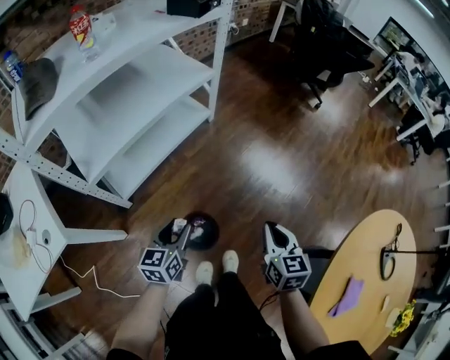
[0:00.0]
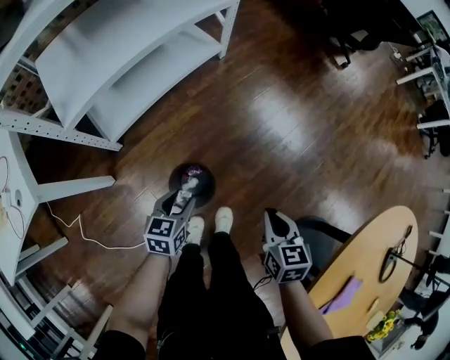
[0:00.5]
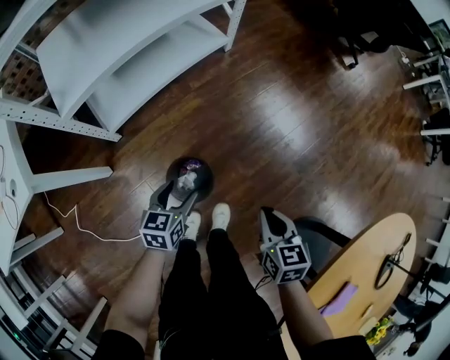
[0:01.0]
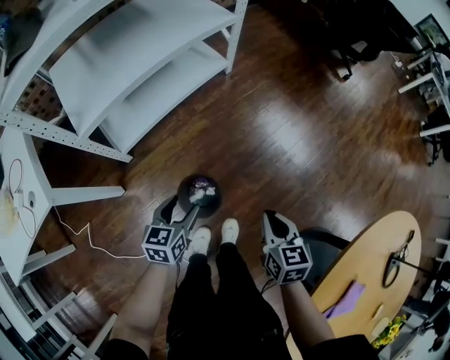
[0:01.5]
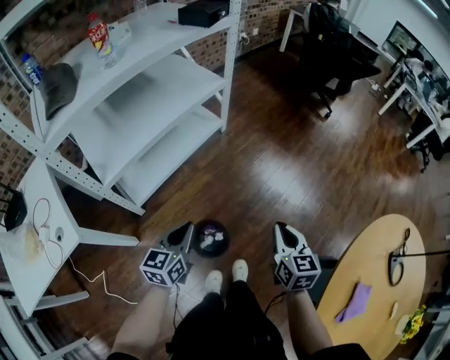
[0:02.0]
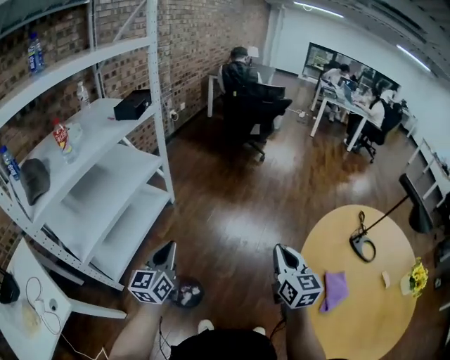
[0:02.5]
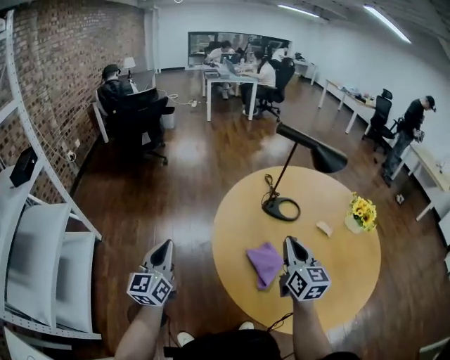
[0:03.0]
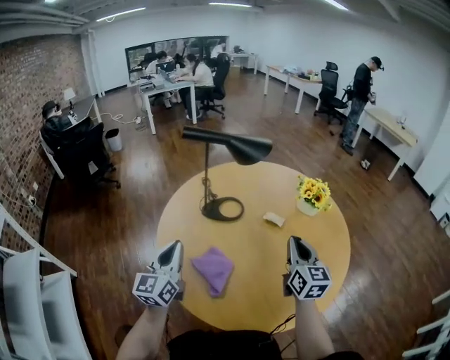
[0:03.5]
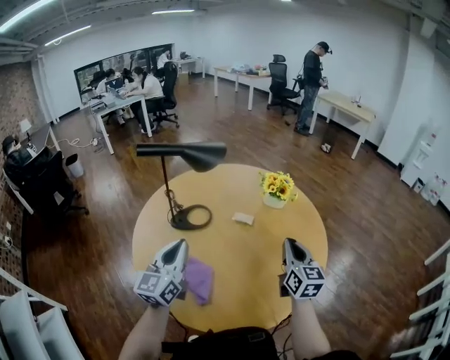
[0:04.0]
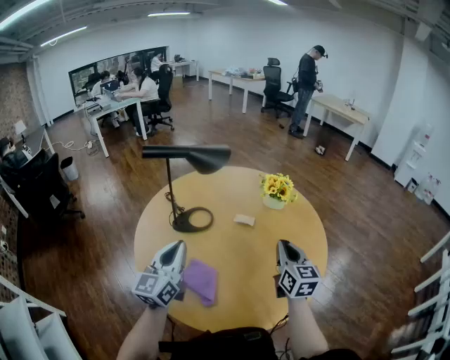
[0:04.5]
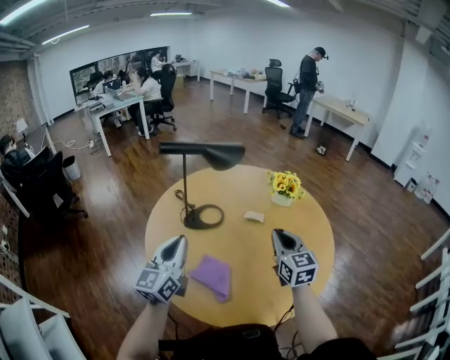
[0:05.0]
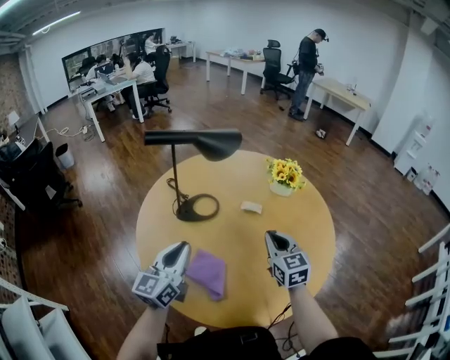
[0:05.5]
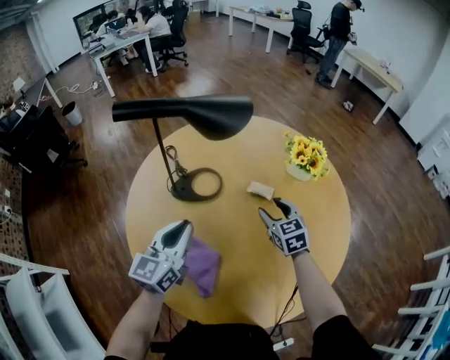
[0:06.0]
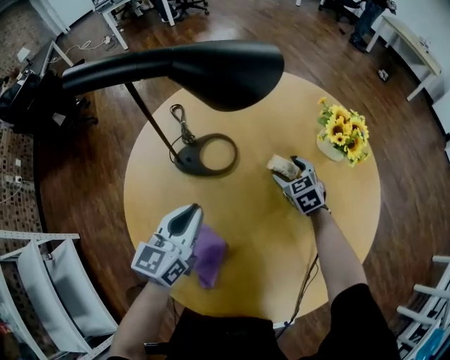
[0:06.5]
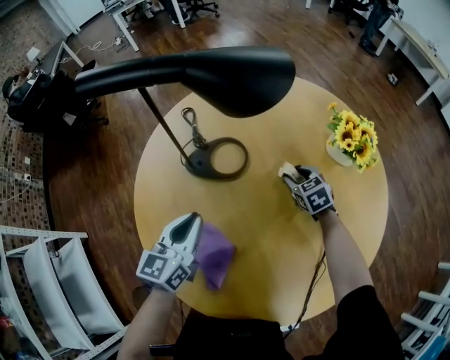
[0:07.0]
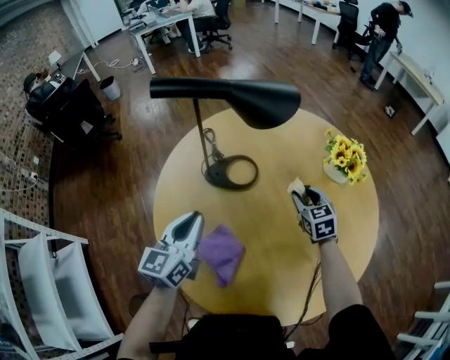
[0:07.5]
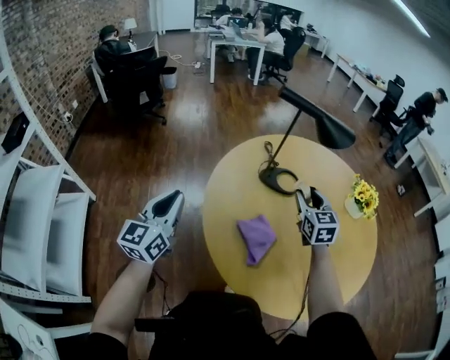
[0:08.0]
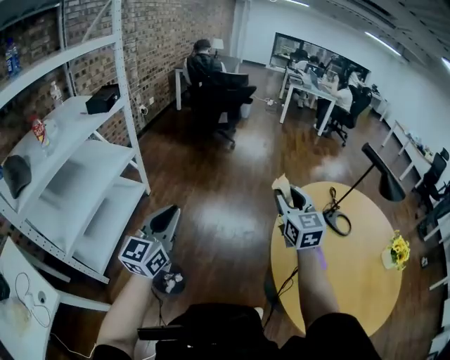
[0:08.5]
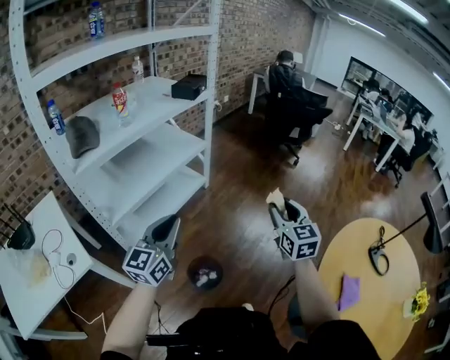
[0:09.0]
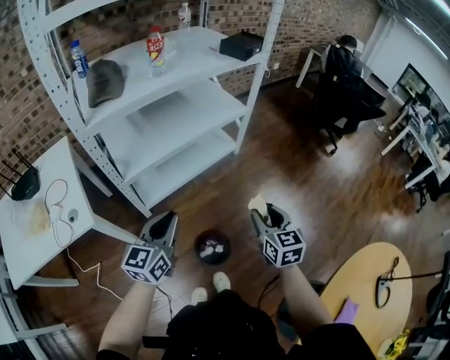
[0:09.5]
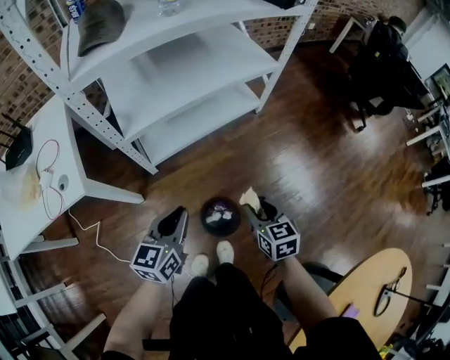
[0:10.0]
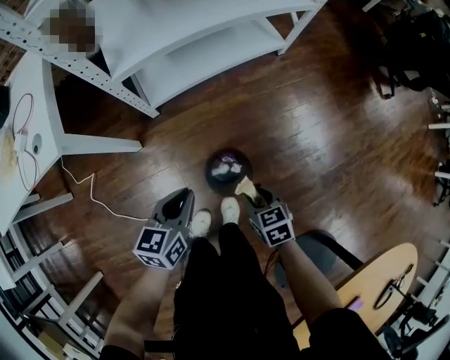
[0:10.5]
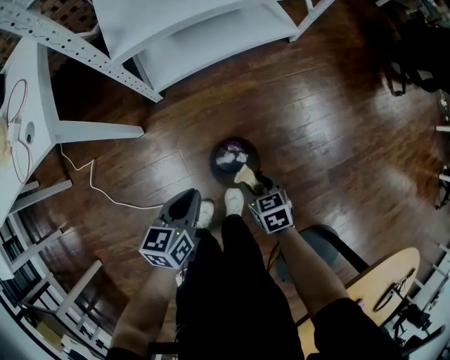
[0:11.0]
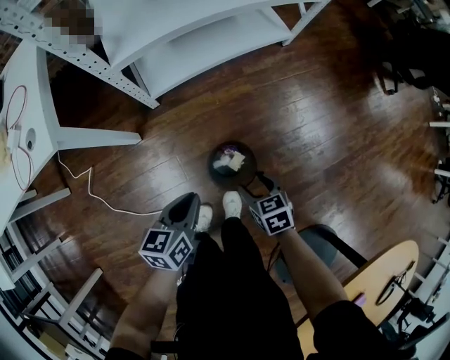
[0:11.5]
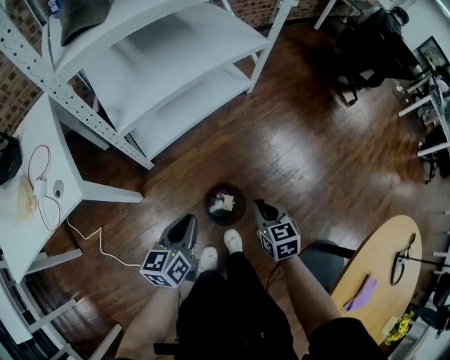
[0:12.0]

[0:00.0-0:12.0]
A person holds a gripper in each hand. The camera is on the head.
0:00.0 to 0:02.0: The left gripper reaches approximately 15 cm downward, then returns, and closes up. The right gripper reaches roughly 15 cm downward, then returns.
0:02.0 to 0:04.0: The two grippers travel together, roughly 80 cm. The right gripper turns by approximately 90 degrees, while the left gripper swivels roughly 80 degrees.
0:04.0 to 0:06.0: The right gripper moves downward, forward and to the left, some 25 cm, swivels approximately 40 degrees, and opens up. The left gripper shifts about 10 cm downward and forward.
0:06.0 to 0:08.0: The right gripper is displaced to the left and upward by approximately 20 cm, and swivels roughly 20 degrees. The left gripper heads to the left and backward, covering roughly 30 cm, and swivels roughly 30 degrees.
0:08.0 to 0:10.0: Both grippers are carried about 70 cm. The right gripper changes its angle by some 80 degrees; the left gripper turns by roughly 70 degrees.
0:10.0 to 0:12.0: The right gripper is displaced backward by roughly 5 cm, goes downward and returns, approximately 25 cm each way, and closes up. The left gripper moves downward, approximately 5 cm.

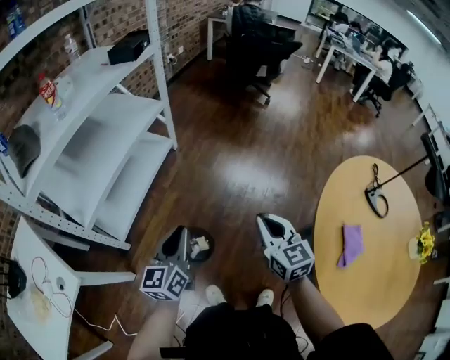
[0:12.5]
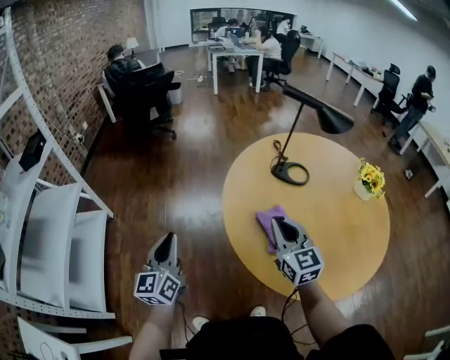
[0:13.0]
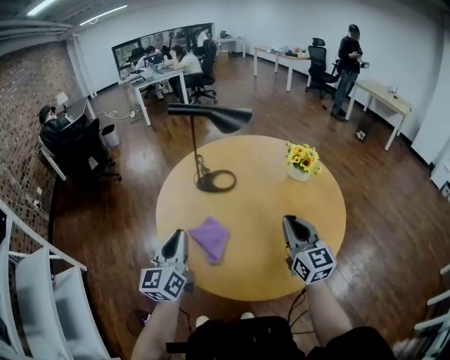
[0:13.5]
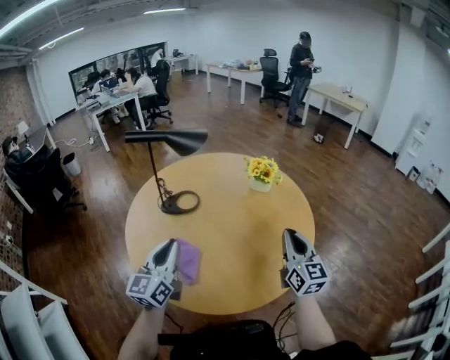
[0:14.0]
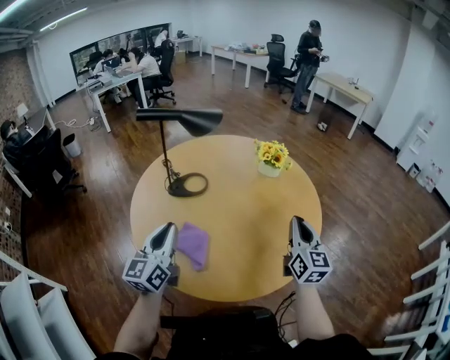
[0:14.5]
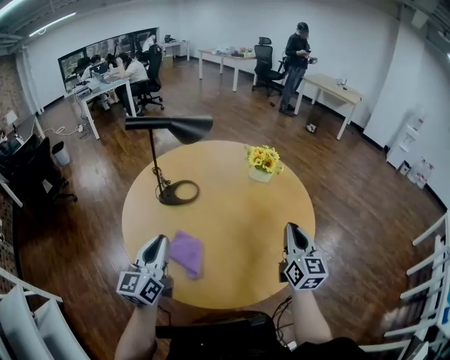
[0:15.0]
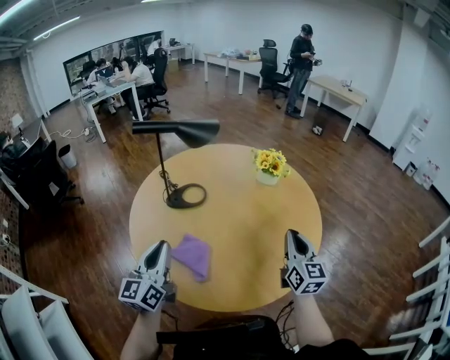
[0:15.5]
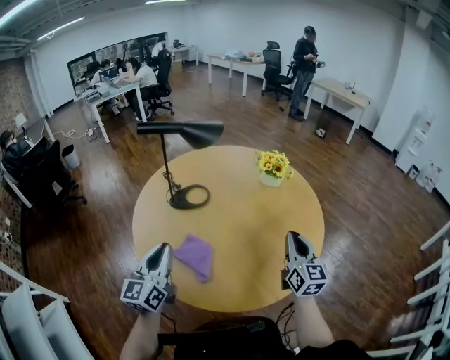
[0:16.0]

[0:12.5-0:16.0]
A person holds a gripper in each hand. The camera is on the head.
0:12.5 to 0:14.5: Both grippers are carried some 60 cm. The left gripper swivels roughly 70 degrees. The right gripper turns by roughly 90 degrees.
0:14.5 to 0:16.0: The grippers stay close to where they were, moving slightly.

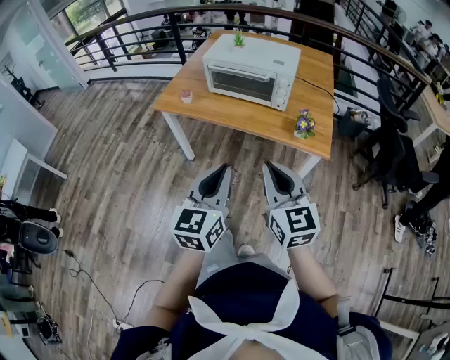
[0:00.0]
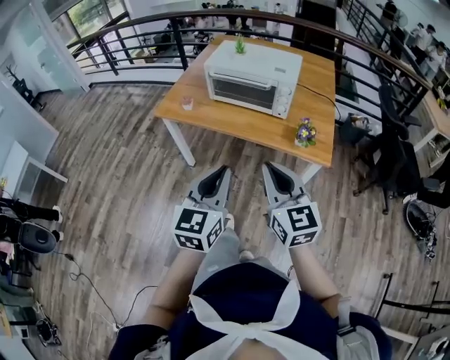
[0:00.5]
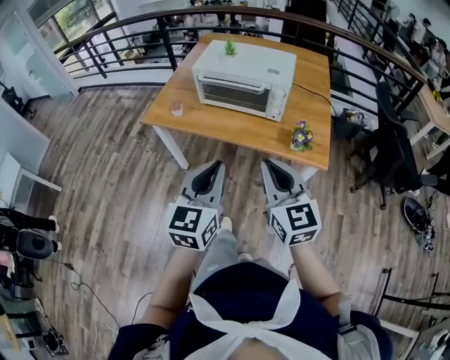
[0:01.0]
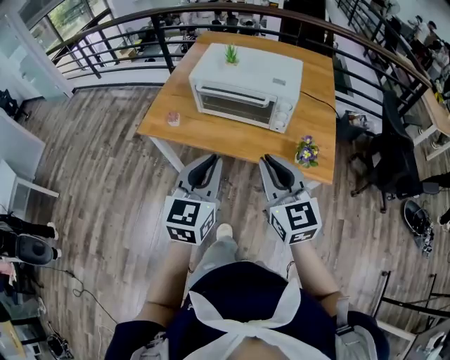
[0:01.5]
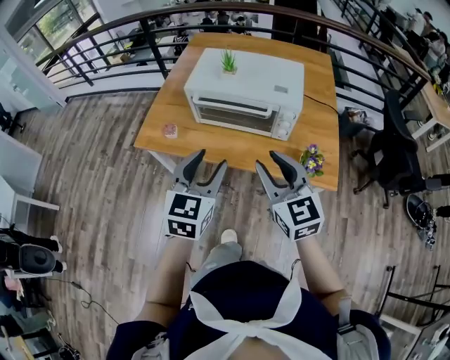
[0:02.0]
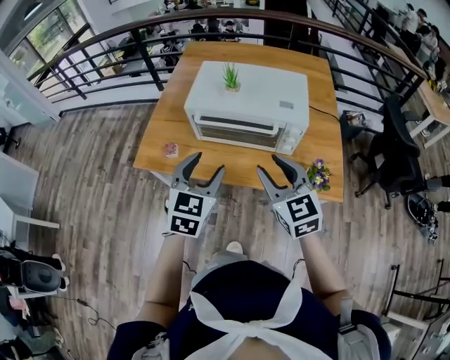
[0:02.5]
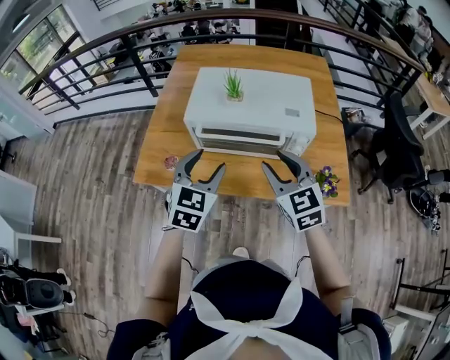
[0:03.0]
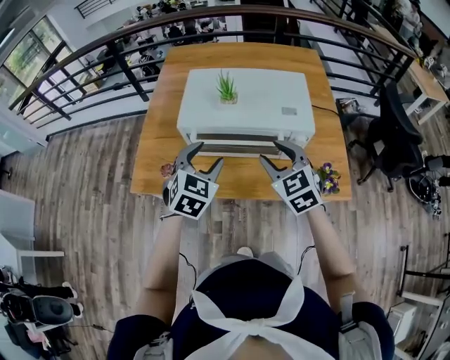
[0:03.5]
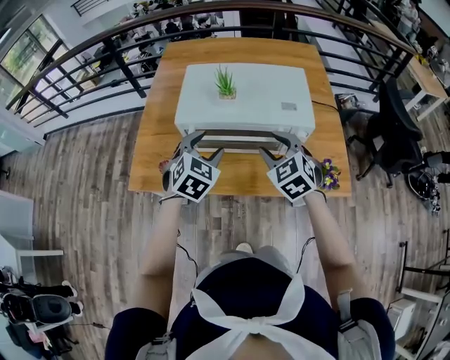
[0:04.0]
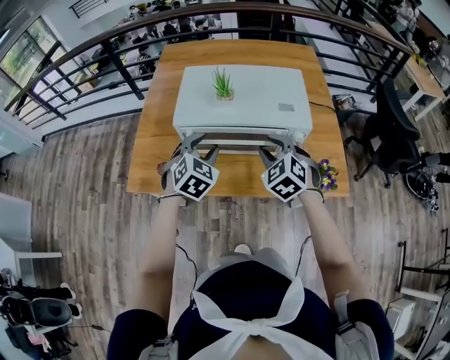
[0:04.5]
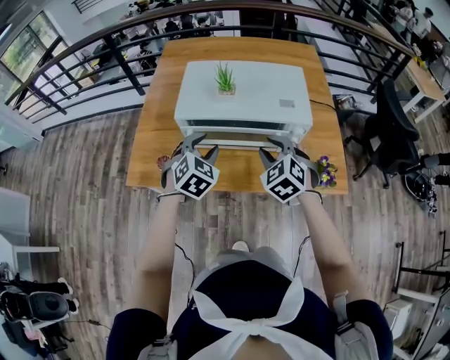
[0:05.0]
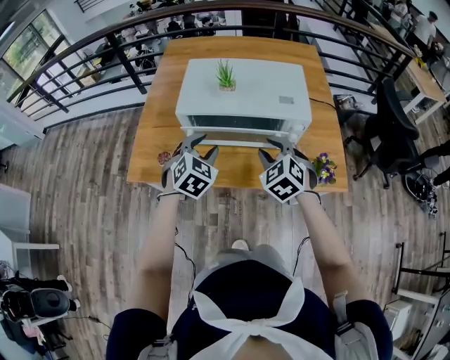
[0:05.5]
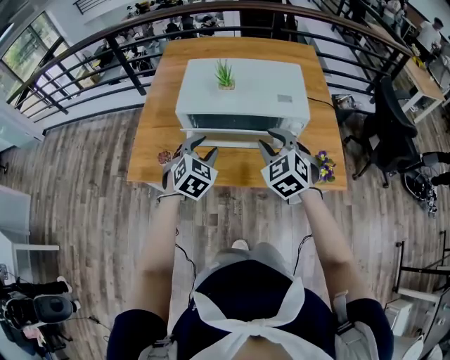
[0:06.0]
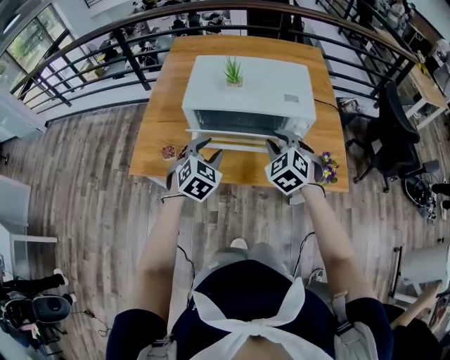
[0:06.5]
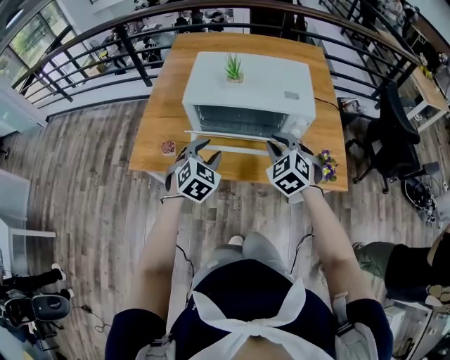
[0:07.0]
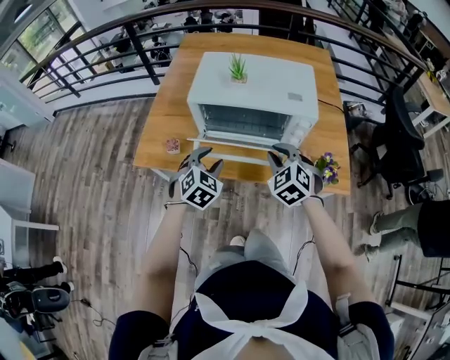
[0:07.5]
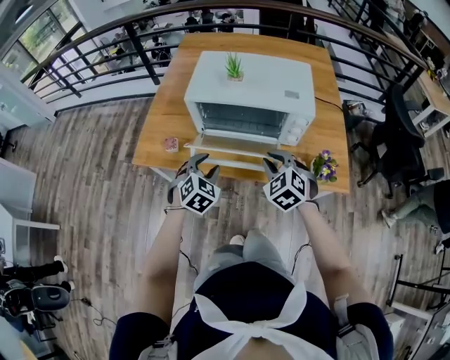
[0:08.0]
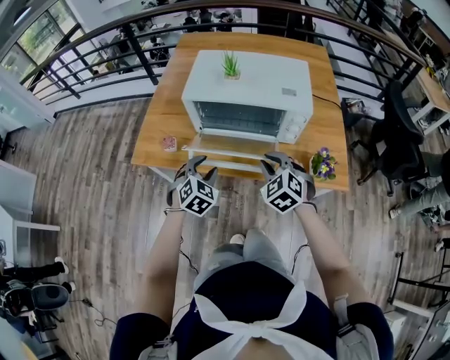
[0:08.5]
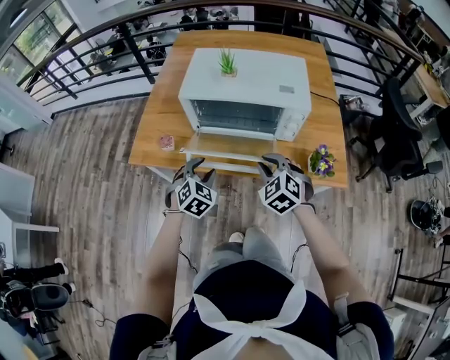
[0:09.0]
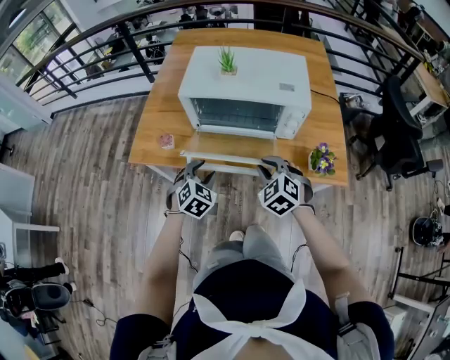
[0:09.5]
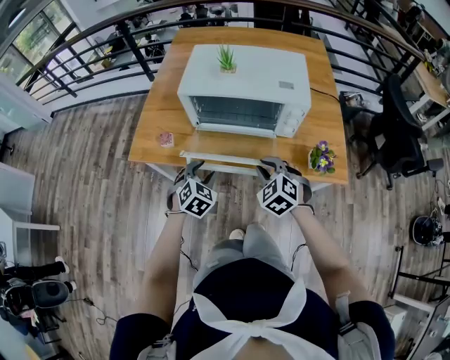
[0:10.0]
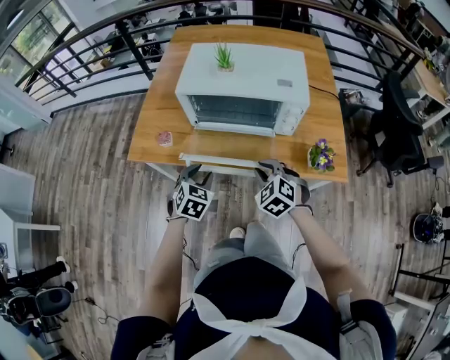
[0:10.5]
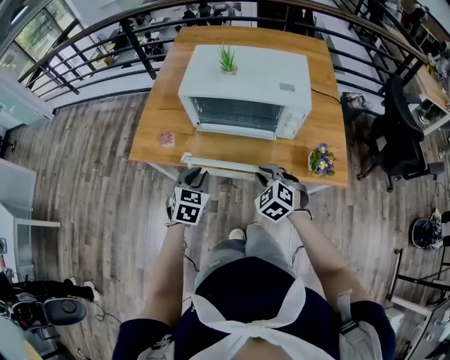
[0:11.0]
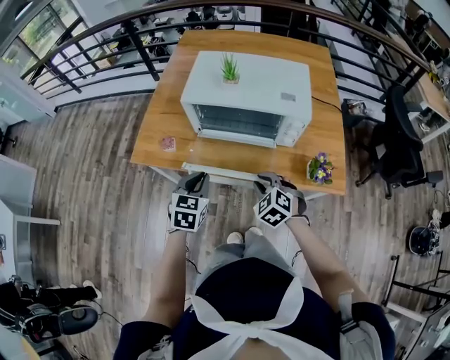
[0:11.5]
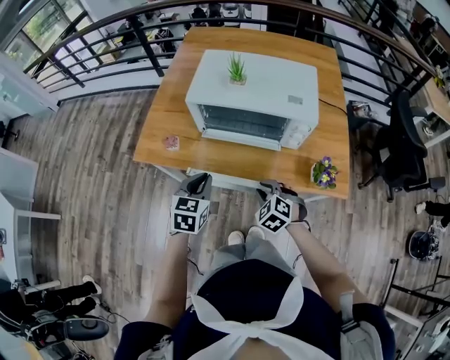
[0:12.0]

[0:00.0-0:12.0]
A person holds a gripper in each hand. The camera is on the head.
0:00.0 to 0:02.0: Both grippers travel together forward, about 25 cm. The right gripper opens its fingers. The left gripper opens its fingers.
0:02.0 to 0:04.0: The grippers both shift forward and downward by roughly 25 cm. The left gripper swivels some 30 degrees, while the right gripper rotates roughly 30 degrees.
0:04.0 to 0:06.0: The grippers stay close to where they were, moving slightly.
0:06.0 to 0:08.0: The left gripper travels backward and downward by about 10 cm. Meanwhile the right gripper travels downward and backward by about 10 cm.
0:08.0 to 0:10.0: The left gripper ends up about 5 cm from where it was; the right gripper moves approximately 5 cm.
0:10.0 to 0:12.0: The left gripper goes about 5 cm upward, changes its angle by approximately 30 degrees, and closes its fingers. Meanwhile the right gripper heads downward, covering approximately 5 cm.
